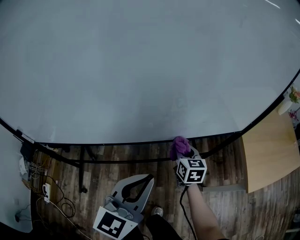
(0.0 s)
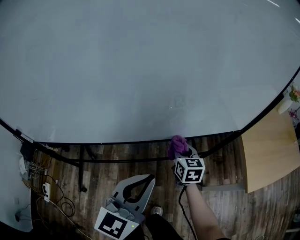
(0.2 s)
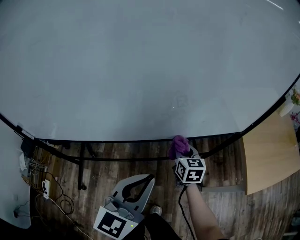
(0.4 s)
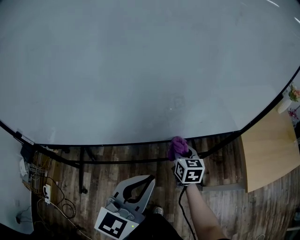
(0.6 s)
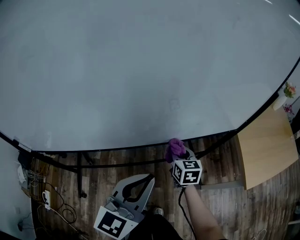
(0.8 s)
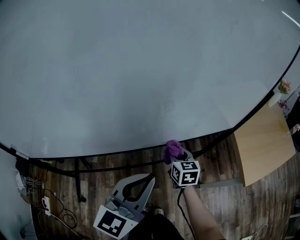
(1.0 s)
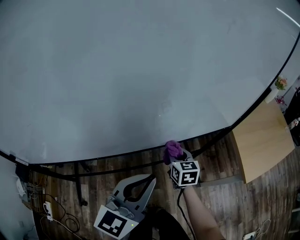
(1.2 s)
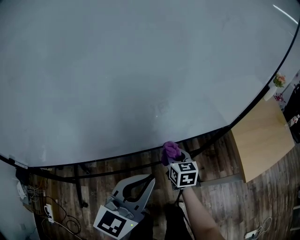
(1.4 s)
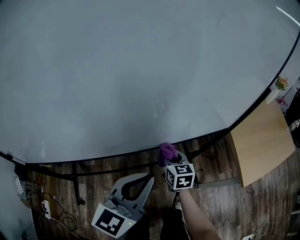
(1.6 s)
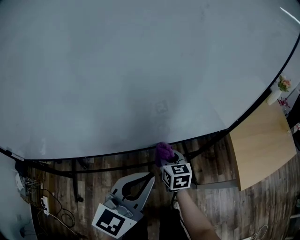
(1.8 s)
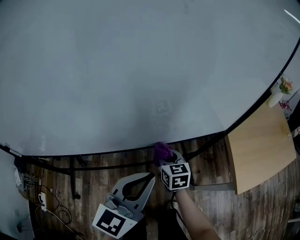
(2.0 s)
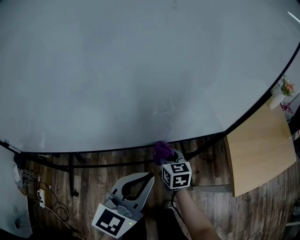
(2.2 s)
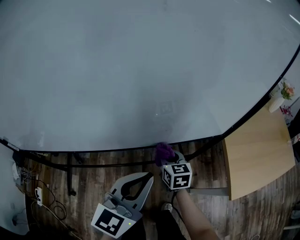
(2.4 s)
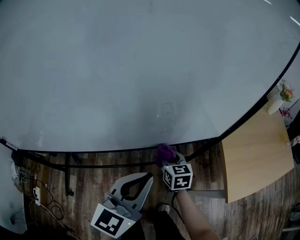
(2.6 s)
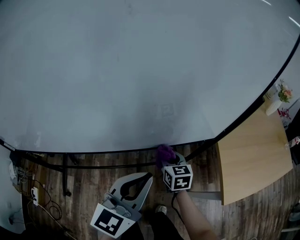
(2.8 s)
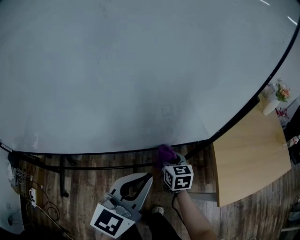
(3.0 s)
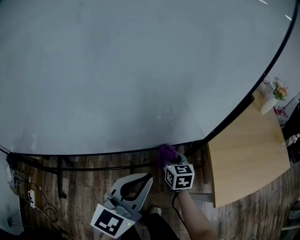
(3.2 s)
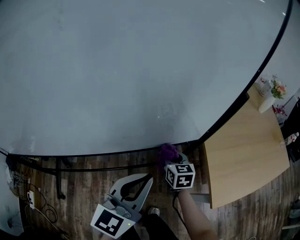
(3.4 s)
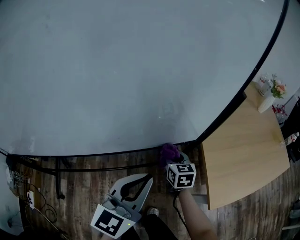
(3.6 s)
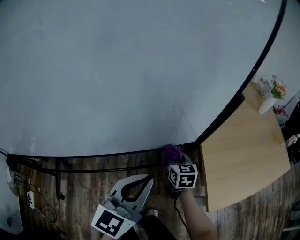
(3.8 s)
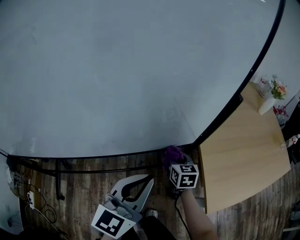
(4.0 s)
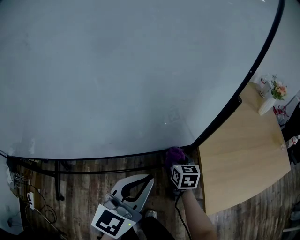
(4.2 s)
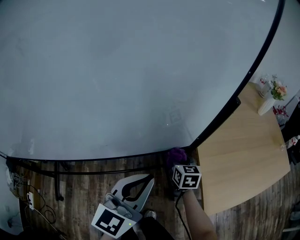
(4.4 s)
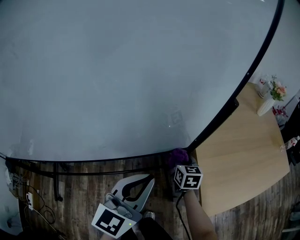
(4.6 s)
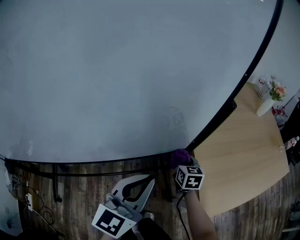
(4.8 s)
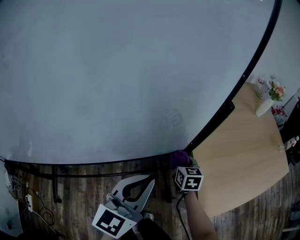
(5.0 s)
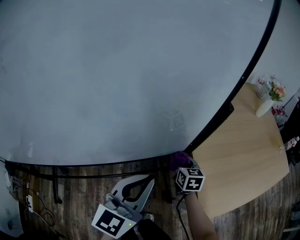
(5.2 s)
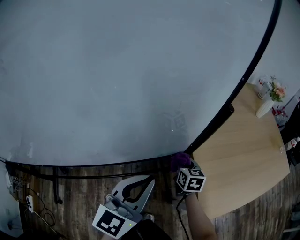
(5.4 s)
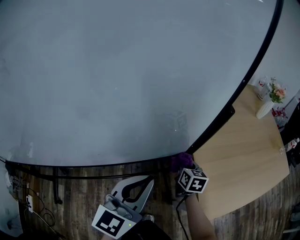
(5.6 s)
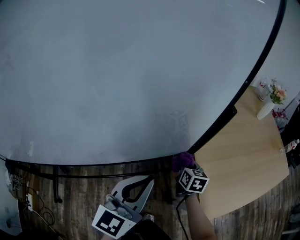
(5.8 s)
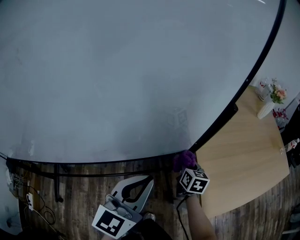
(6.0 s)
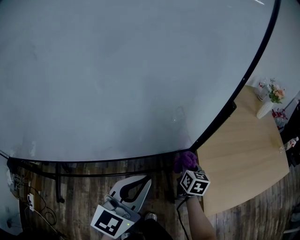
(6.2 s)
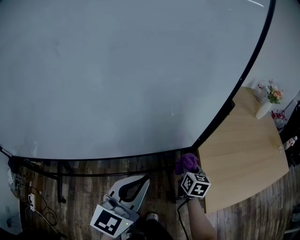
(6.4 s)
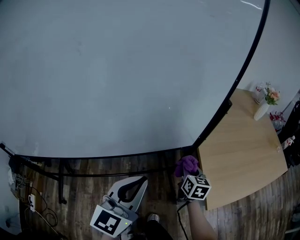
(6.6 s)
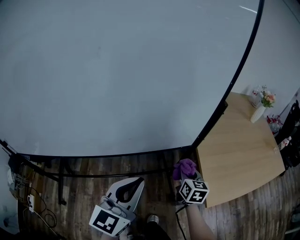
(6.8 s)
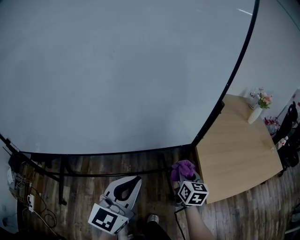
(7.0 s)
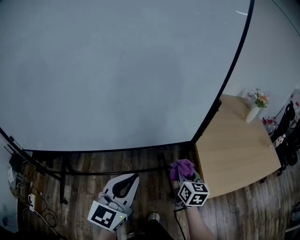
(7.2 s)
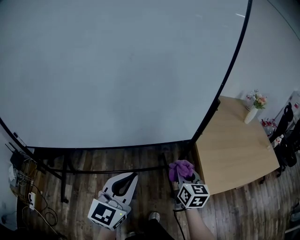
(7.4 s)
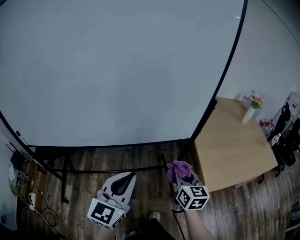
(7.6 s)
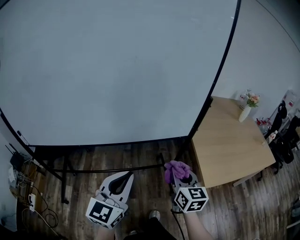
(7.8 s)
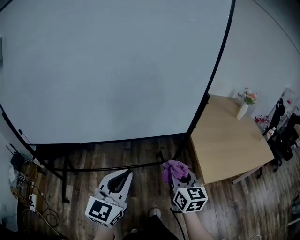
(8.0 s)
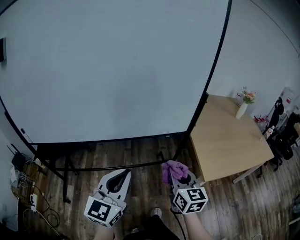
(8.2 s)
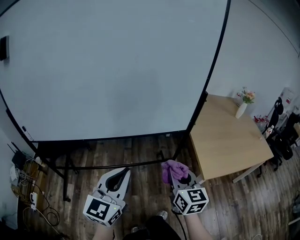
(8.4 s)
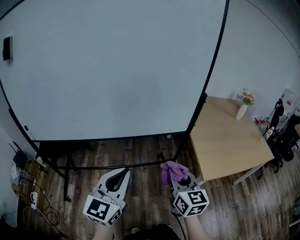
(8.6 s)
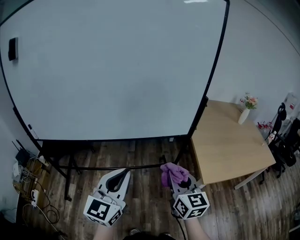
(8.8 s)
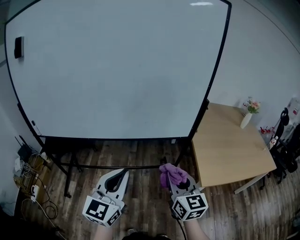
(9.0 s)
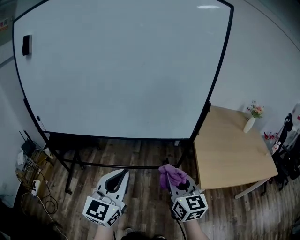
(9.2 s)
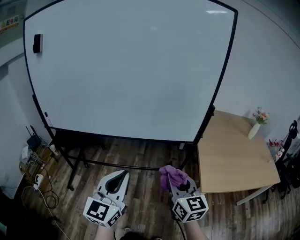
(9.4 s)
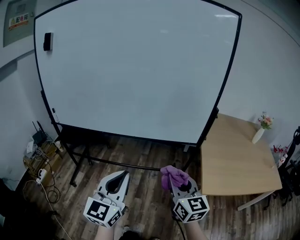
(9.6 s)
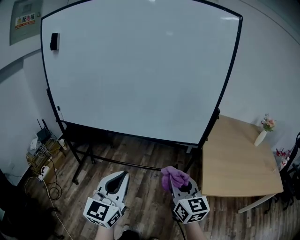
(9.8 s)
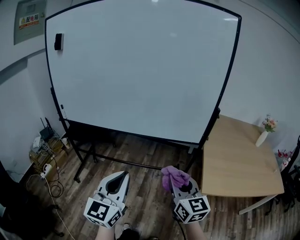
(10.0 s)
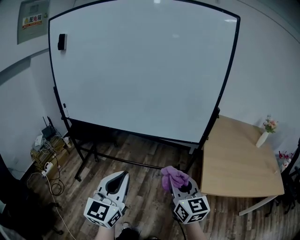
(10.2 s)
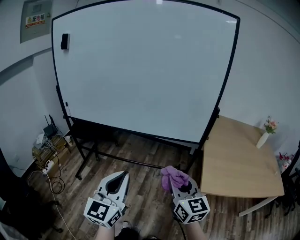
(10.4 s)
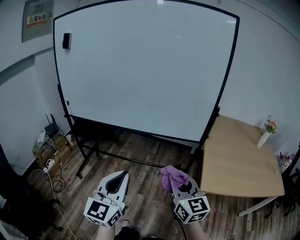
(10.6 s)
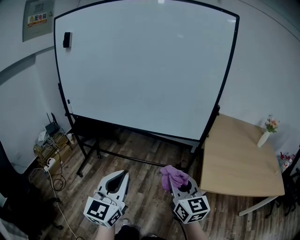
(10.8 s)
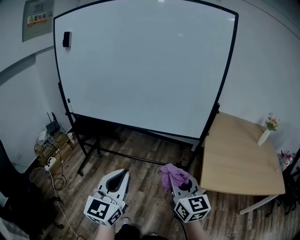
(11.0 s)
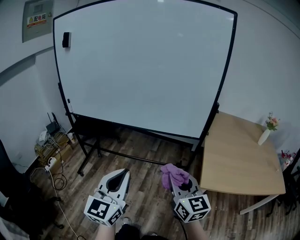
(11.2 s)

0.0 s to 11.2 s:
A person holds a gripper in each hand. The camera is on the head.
0.0 to 1.6 s: The grippers stay close to where they were, moving slightly.
1.6 to 3.2 s: The two grippers go approximately 15 cm to the right.
3.2 to 4.8 s: The right gripper travels to the right and forward by approximately 15 cm, while the left gripper is displaced to the right and forward by about 10 cm.
4.8 to 6.4 s: Both grippers travel together backward, roughly 5 cm.
6.4 to 8.0 s: The right gripper moves backward and upward, approximately 35 cm, and changes its angle by about 20 degrees. The left gripper moves backward and to the left, roughly 25 cm.
8.0 to 9.6 s: The left gripper goes some 10 cm backward. The right gripper travels backward and upward by some 10 cm, and rotates approximately 20 degrees.
9.6 to 11.2 s: The two grippers go some 10 cm backward.

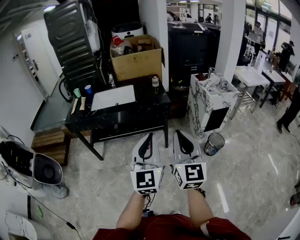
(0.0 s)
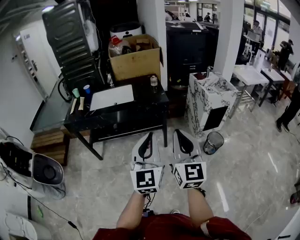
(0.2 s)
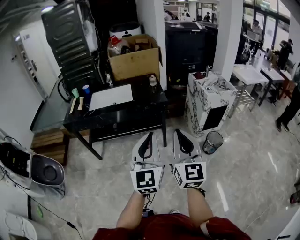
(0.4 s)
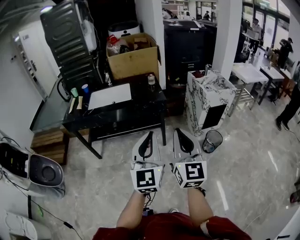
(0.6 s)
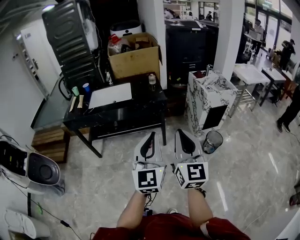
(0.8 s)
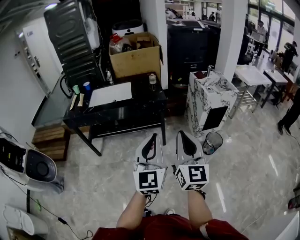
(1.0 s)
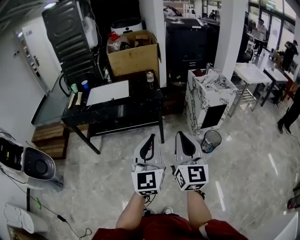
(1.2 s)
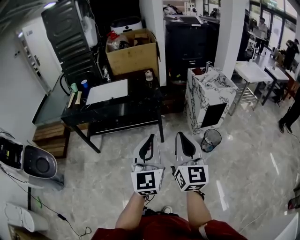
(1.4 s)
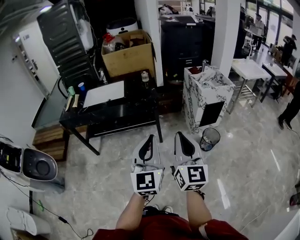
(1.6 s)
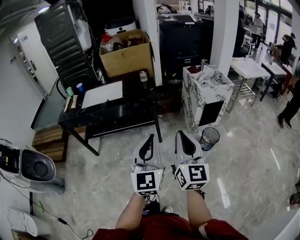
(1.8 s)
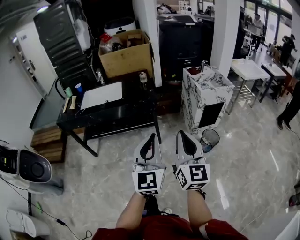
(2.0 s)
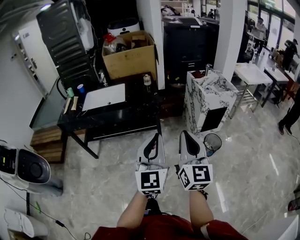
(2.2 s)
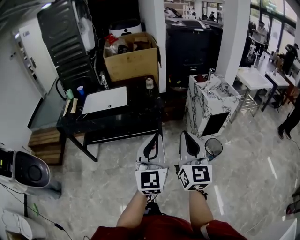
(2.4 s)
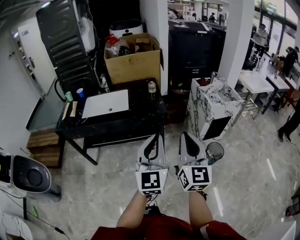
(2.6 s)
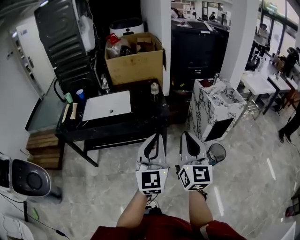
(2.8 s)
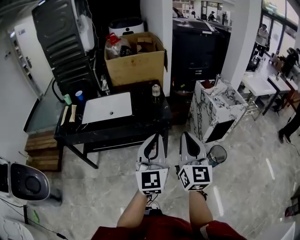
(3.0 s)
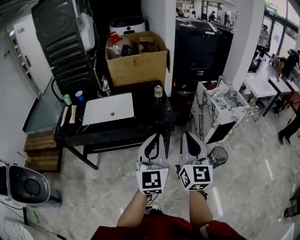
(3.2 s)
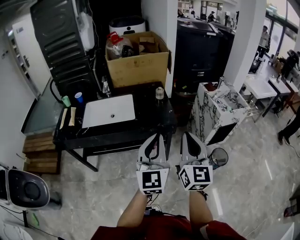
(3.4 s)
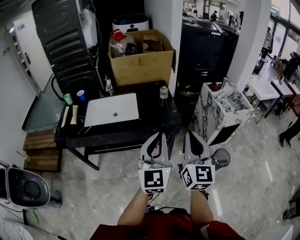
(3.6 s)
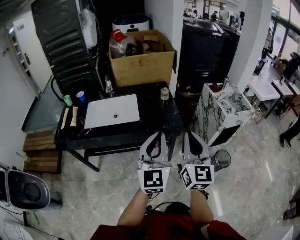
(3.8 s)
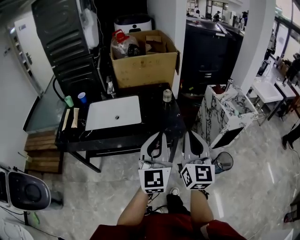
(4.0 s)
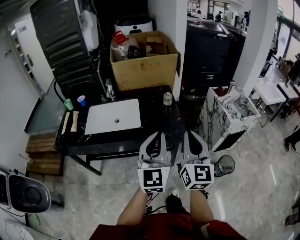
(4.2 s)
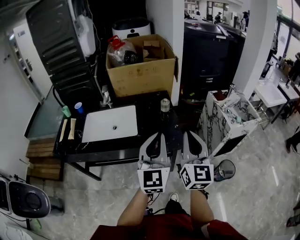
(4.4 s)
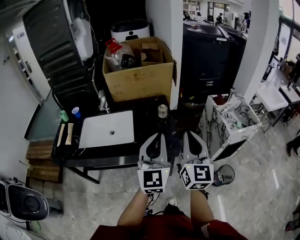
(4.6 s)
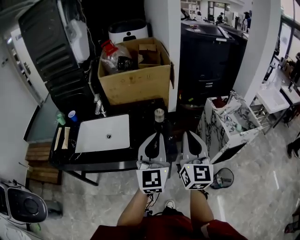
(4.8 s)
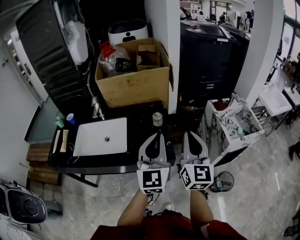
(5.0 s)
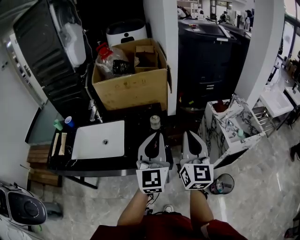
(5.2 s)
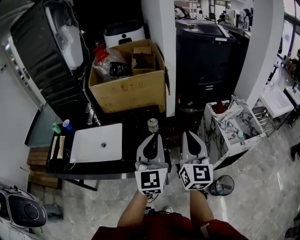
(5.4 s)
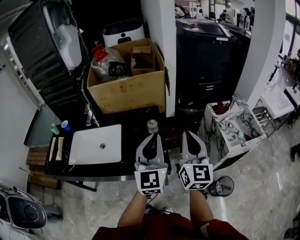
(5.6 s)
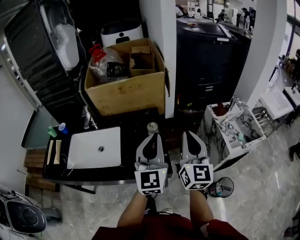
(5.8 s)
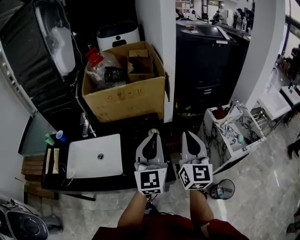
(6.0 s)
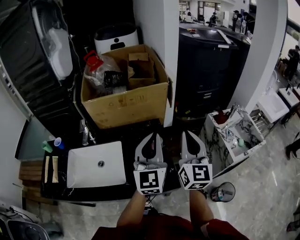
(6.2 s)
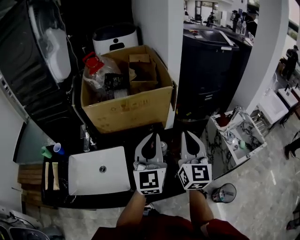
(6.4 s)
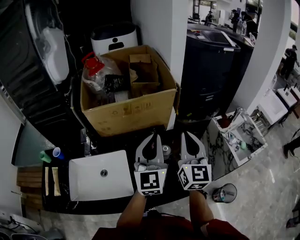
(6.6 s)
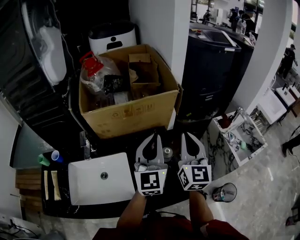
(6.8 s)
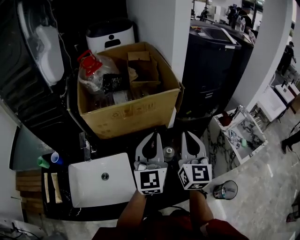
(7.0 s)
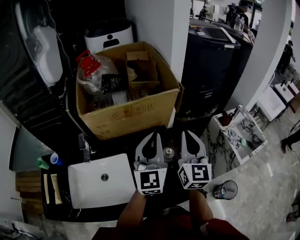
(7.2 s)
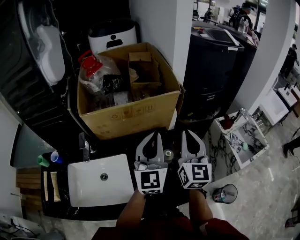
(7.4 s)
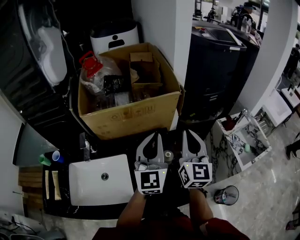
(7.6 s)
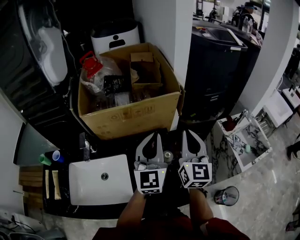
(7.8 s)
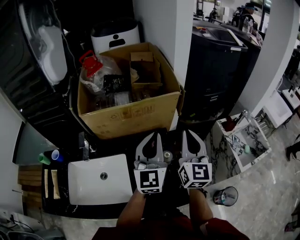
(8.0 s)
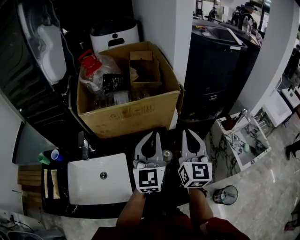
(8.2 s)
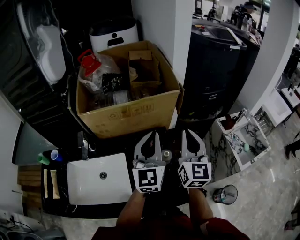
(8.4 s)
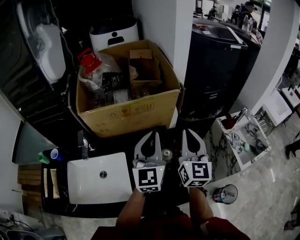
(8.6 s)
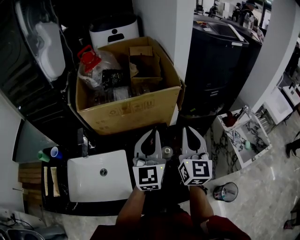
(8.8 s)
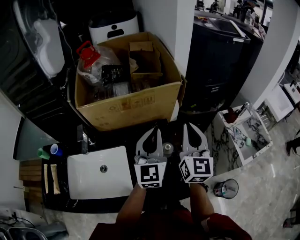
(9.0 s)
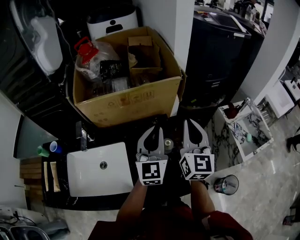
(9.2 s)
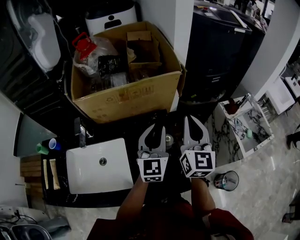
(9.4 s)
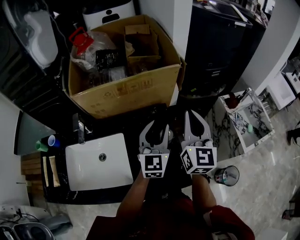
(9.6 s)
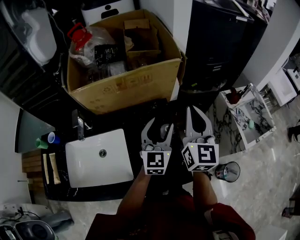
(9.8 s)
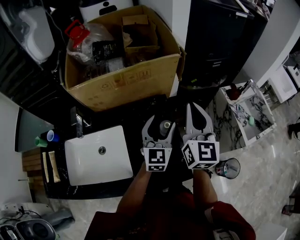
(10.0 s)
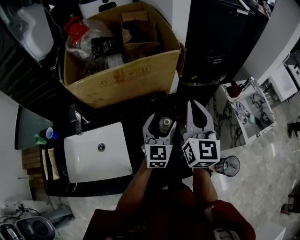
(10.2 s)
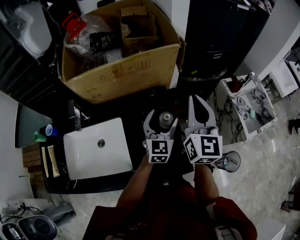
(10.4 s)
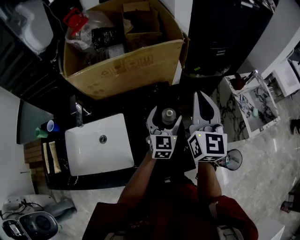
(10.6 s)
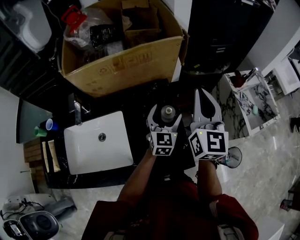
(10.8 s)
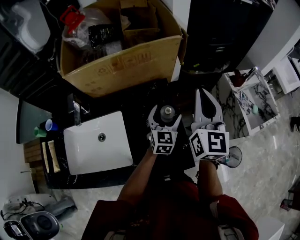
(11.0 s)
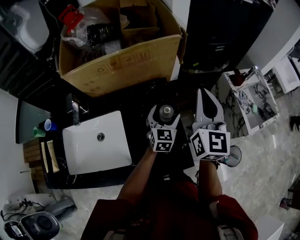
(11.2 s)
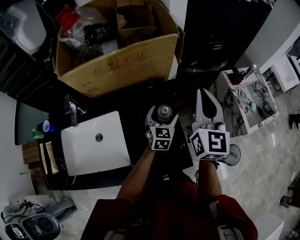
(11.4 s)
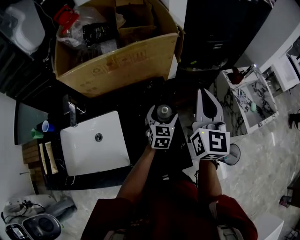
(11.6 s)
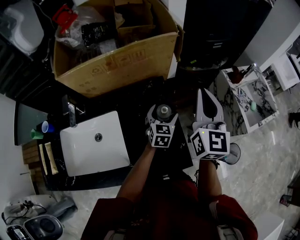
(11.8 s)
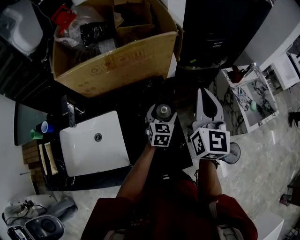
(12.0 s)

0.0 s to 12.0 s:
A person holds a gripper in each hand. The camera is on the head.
0.0 to 1.6 s: The grippers both shift to the right by some 10 cm.
1.6 to 3.0 s: Both grippers travel together forward and to the left, some 25 cm.
3.0 to 4.4 s: Both grippers travel together forward, roughly 20 cm.
4.4 to 6.0 s: The grippers both shift forward by some 25 cm.
6.0 to 7.6 s: The grippers both shift forward and to the left by roughly 20 cm.
7.6 to 9.0 s: The grippers move only a little.
9.0 to 10.4 s: The left gripper heads downward, covering about 15 cm, and opens.
10.4 to 12.0 s: The left gripper travels downward by about 10 cm.

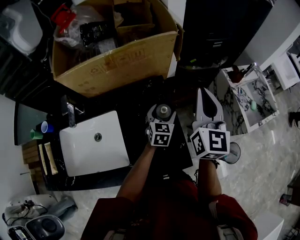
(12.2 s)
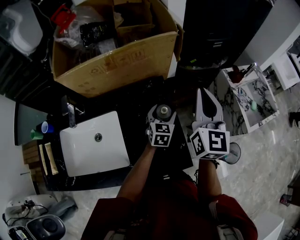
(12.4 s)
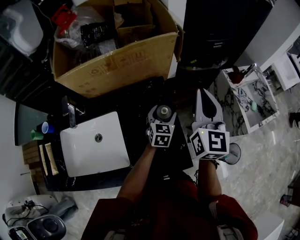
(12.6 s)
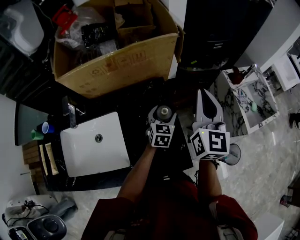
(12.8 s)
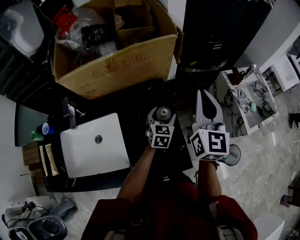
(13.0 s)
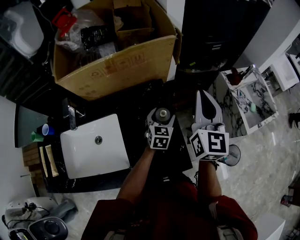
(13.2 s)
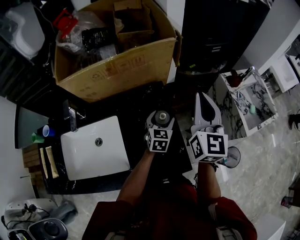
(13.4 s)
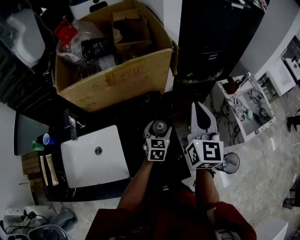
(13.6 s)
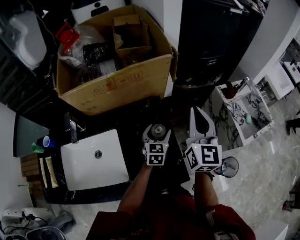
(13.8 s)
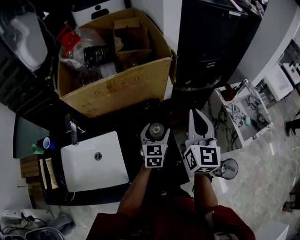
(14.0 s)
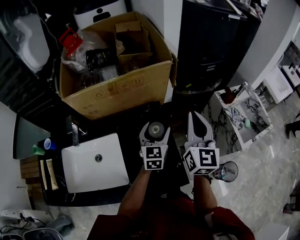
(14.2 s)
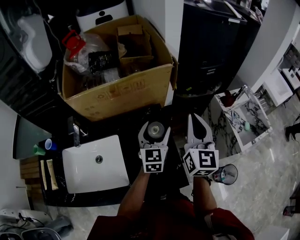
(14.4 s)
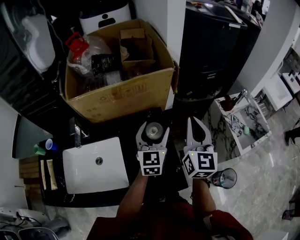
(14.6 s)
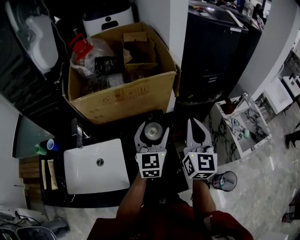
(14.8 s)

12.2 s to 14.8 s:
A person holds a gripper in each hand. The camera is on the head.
12.2 to 13.4 s: Both grippers stay put.
13.4 to 14.8 s: The left gripper moves upward, approximately 20 cm, and swivels some 30 degrees.
